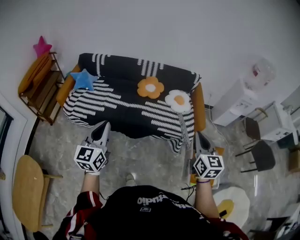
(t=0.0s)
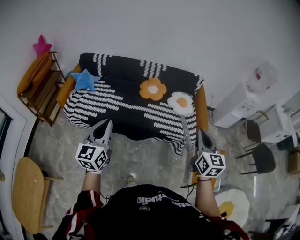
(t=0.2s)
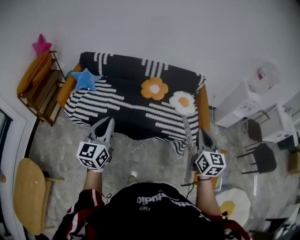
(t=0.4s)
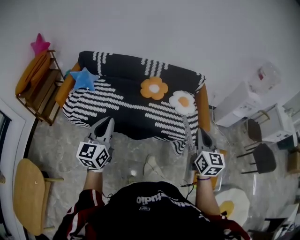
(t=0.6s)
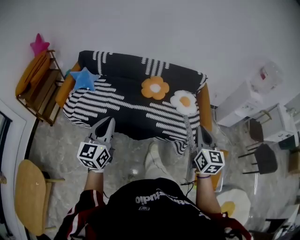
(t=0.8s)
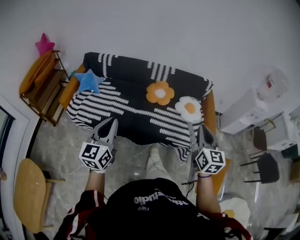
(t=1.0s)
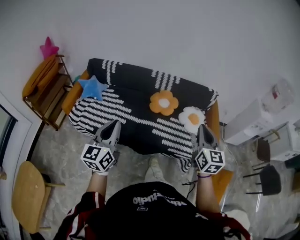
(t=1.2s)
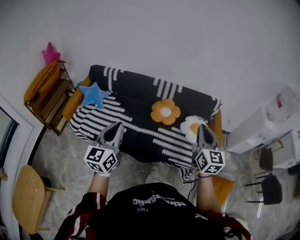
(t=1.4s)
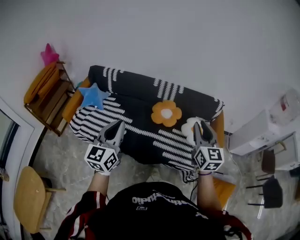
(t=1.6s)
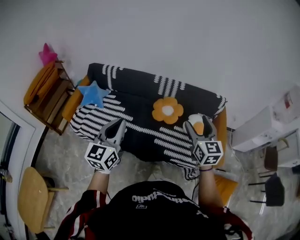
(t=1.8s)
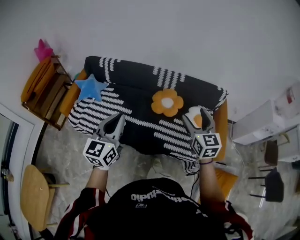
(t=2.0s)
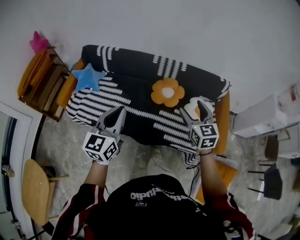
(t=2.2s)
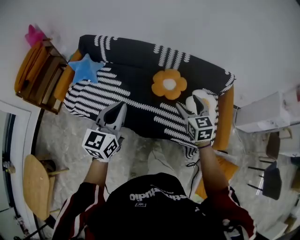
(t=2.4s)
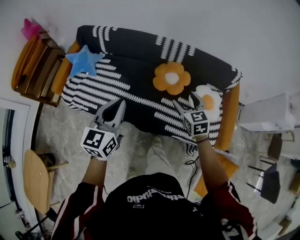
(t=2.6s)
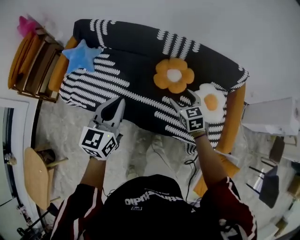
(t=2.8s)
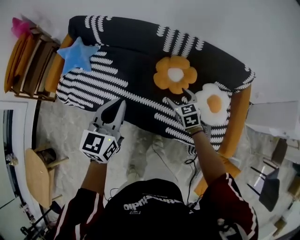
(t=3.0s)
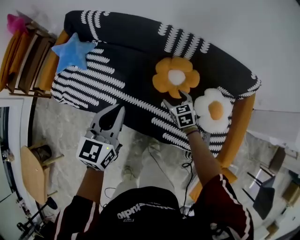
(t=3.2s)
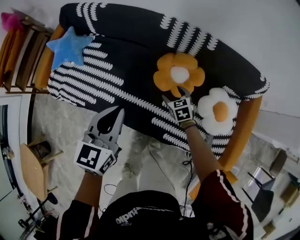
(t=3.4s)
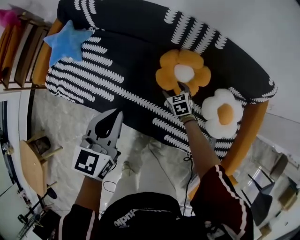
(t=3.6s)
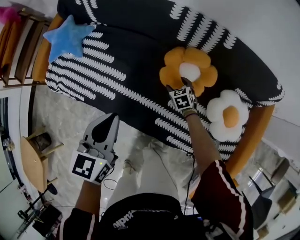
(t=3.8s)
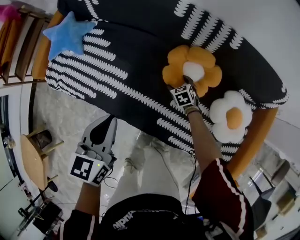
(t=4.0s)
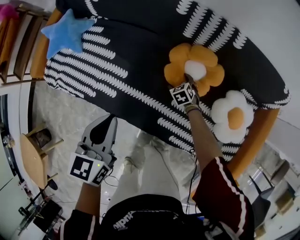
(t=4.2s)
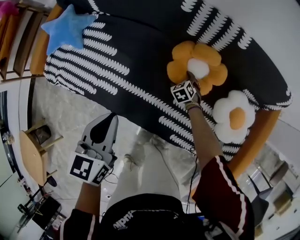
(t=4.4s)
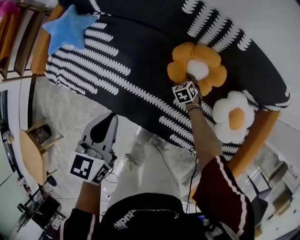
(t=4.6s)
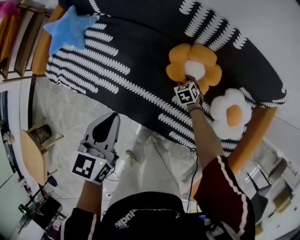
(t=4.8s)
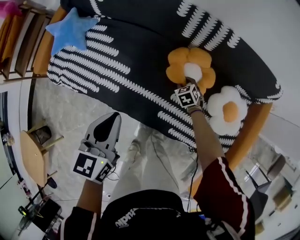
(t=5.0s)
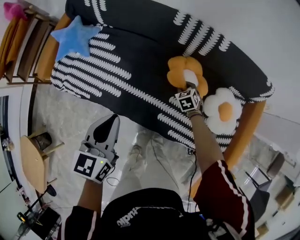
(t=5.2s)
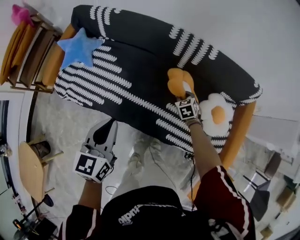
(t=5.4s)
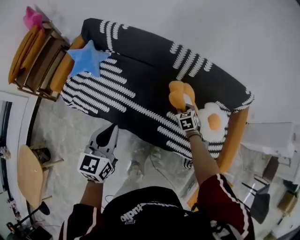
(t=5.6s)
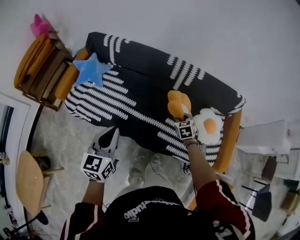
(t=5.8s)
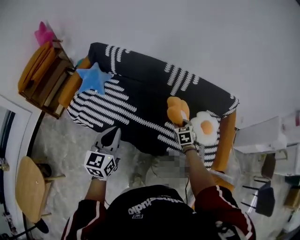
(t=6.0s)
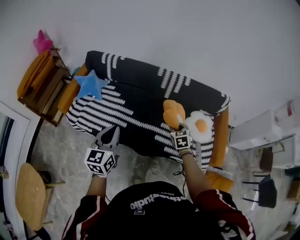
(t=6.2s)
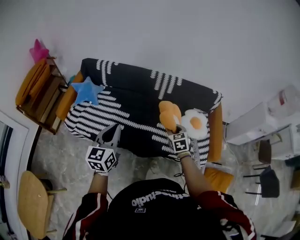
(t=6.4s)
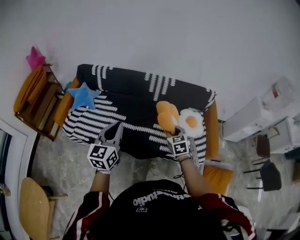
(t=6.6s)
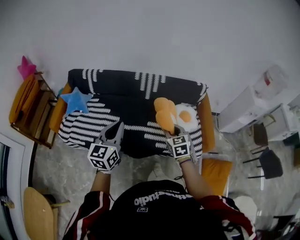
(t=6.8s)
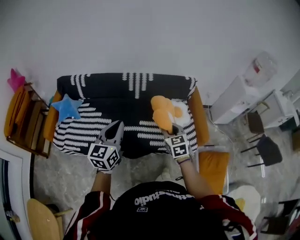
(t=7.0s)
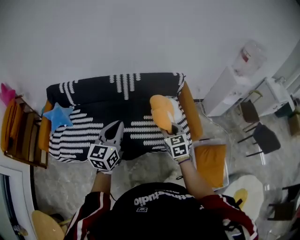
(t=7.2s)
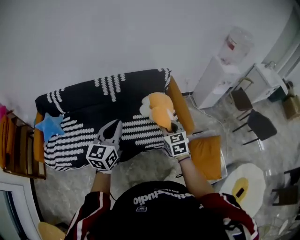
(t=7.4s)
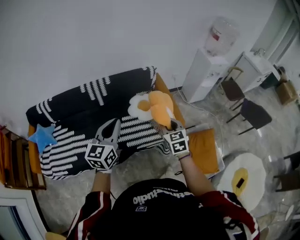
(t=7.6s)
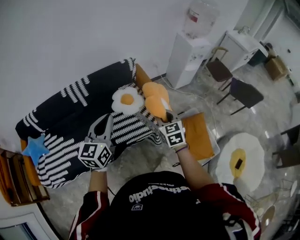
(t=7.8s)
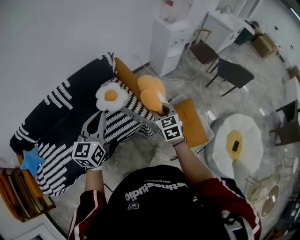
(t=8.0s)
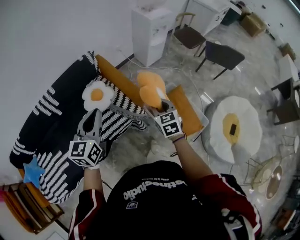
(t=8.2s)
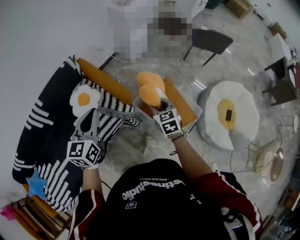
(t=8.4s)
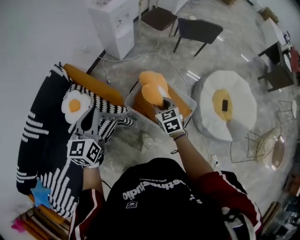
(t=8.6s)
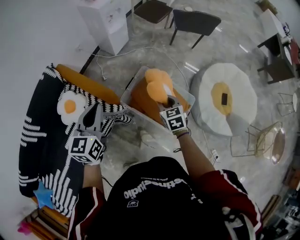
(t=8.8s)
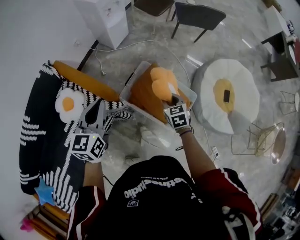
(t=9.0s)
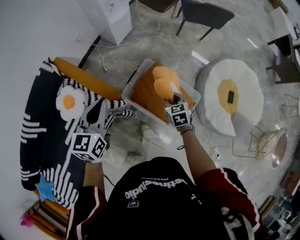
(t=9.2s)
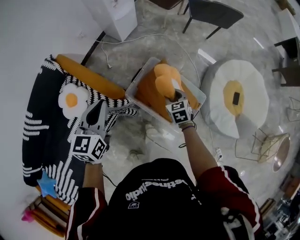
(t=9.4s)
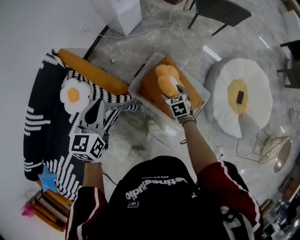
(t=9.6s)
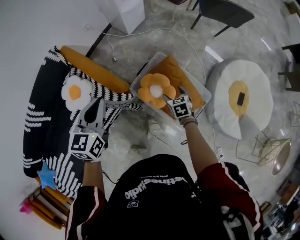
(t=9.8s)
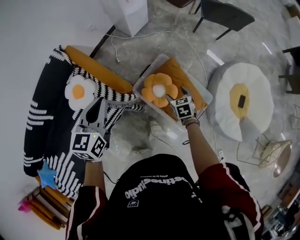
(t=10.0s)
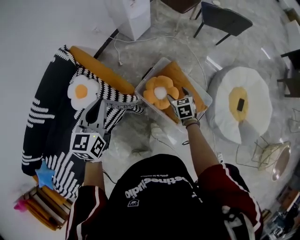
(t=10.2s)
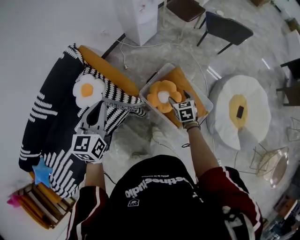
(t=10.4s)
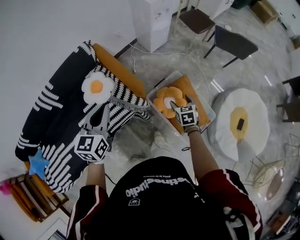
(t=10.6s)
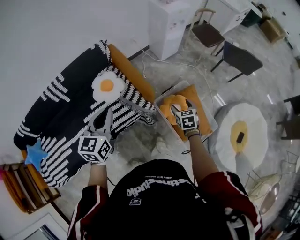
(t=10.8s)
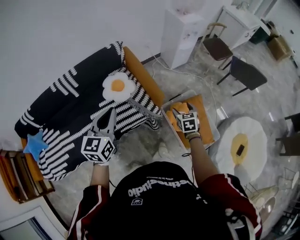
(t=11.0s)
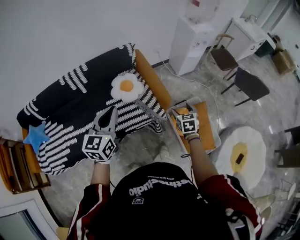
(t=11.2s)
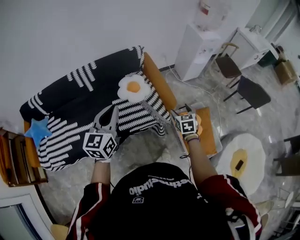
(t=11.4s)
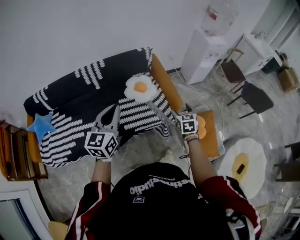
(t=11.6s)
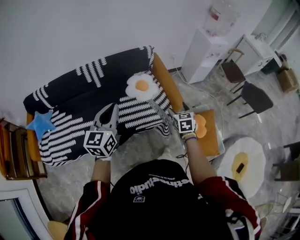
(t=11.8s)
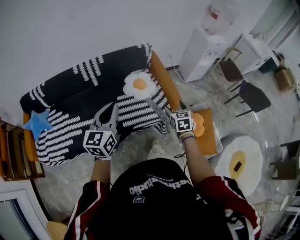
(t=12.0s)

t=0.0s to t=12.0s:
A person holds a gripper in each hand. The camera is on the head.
t=0.0s to t=1.6s: The grippers both shift forward by some 30 cm.
t=1.6s to t=3.0s: The left gripper goes some 25 cm forward and downward; the right gripper shifts some 50 cm downward and forward, angles its fingers downward, by approximately 40 degrees, and opens its fingers.
t=3.0s to t=4.4s: The left gripper travels downward by approximately 15 cm. Meanwhile the right gripper shifts roughly 35 cm downward, and changes its angle by some 30 degrees.
t=4.4s to t=6.0s: The right gripper moves upward and backward, about 40 cm, turns by roughly 20 degrees, and closes up. Meanwhile the left gripper is displaced upward, backward and to the left by some 30 cm.
t=6.0s to t=7.6s: The left gripper changes place by roughly 35 cm, and swivels roughly 40 degrees, while the right gripper changes place by roughly 40 cm, and swivels roughly 40 degrees.
t=7.6s to t=9.0s: The pair of grippers is taken some 50 cm. The right gripper changes its angle by about 50 degrees; the left gripper rotates approximately 40 degrees.
t=9.0s to t=10.4s: The right gripper is displaced to the left by about 5 cm, and opens up, while the left gripper travels to the left by approximately 10 cm.
t=10.4s to t=12.0s: The right gripper is displaced to the left by some 35 cm, and rotates roughly 30 degrees. Meanwhile the left gripper shifts some 35 cm to the left and backward, and swivels some 30 degrees.

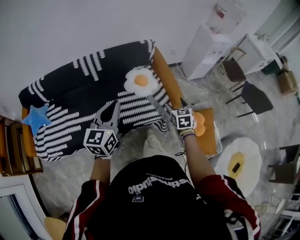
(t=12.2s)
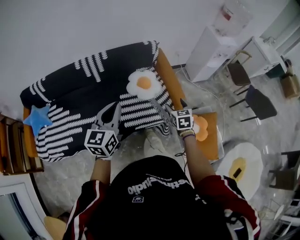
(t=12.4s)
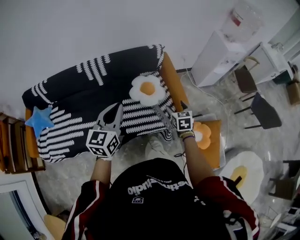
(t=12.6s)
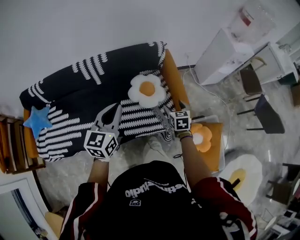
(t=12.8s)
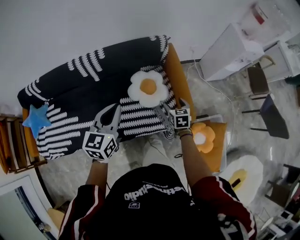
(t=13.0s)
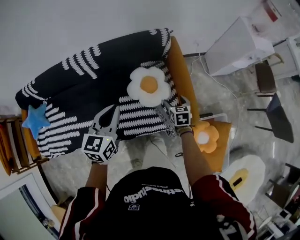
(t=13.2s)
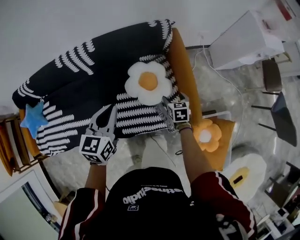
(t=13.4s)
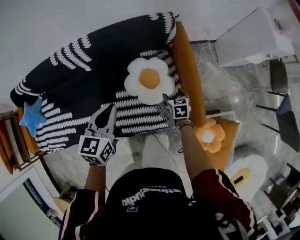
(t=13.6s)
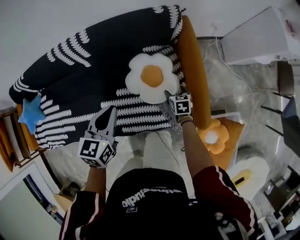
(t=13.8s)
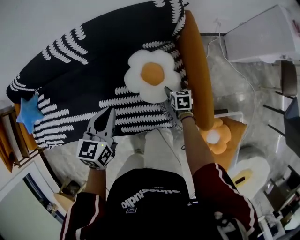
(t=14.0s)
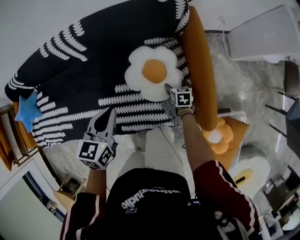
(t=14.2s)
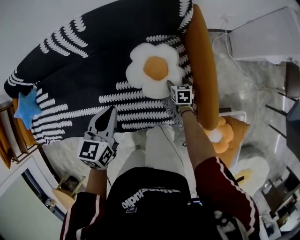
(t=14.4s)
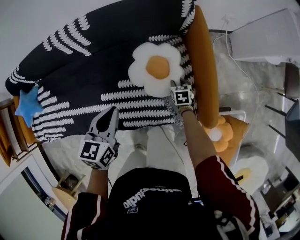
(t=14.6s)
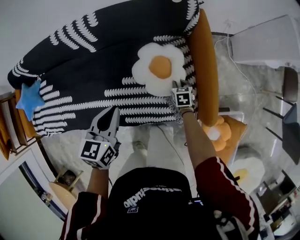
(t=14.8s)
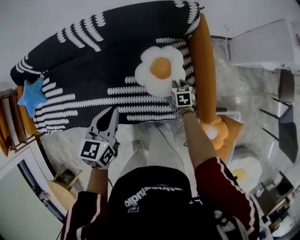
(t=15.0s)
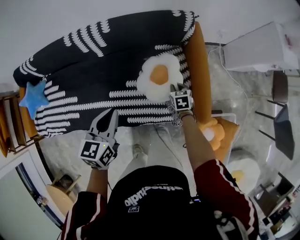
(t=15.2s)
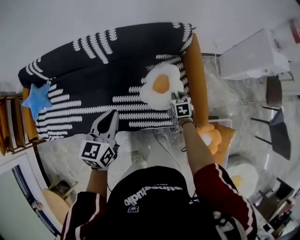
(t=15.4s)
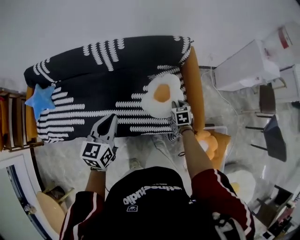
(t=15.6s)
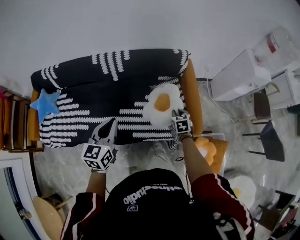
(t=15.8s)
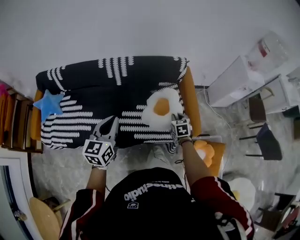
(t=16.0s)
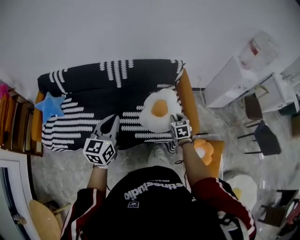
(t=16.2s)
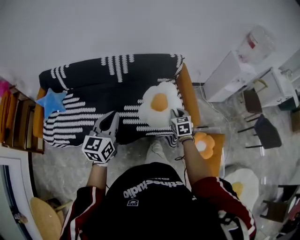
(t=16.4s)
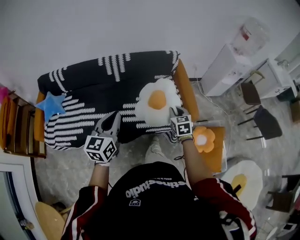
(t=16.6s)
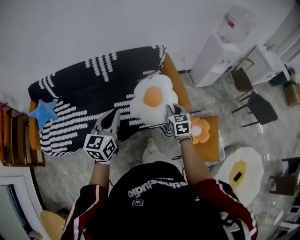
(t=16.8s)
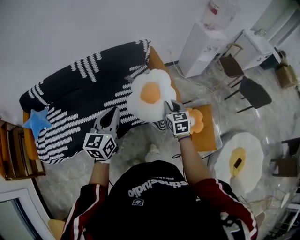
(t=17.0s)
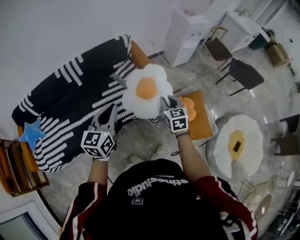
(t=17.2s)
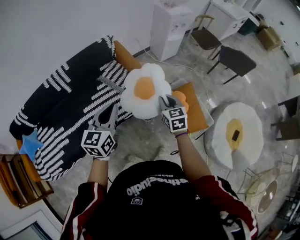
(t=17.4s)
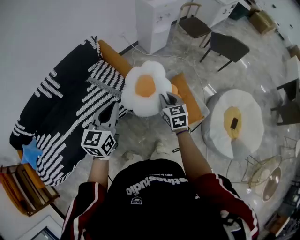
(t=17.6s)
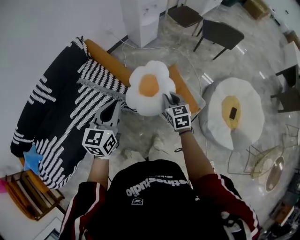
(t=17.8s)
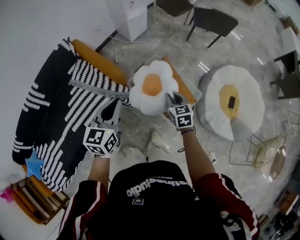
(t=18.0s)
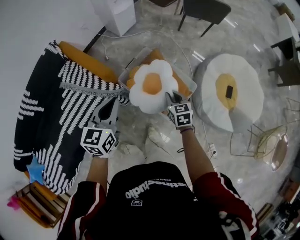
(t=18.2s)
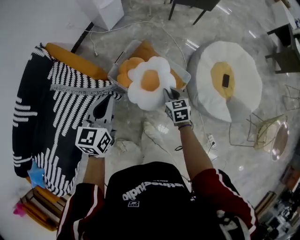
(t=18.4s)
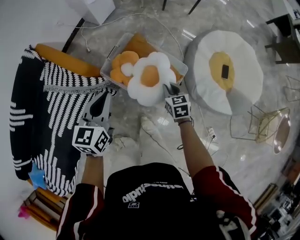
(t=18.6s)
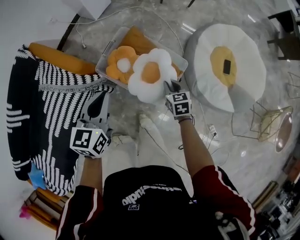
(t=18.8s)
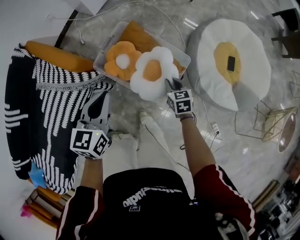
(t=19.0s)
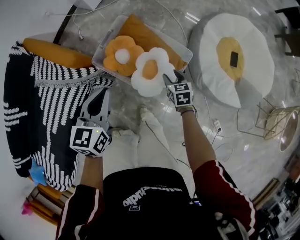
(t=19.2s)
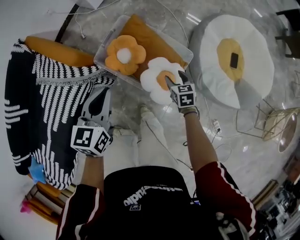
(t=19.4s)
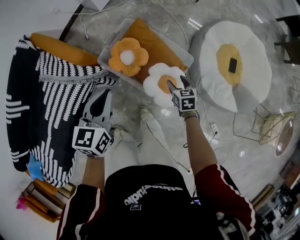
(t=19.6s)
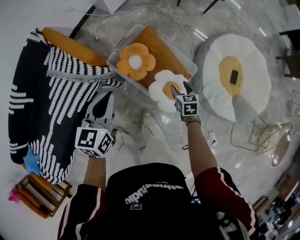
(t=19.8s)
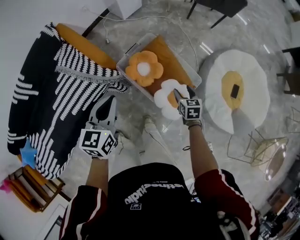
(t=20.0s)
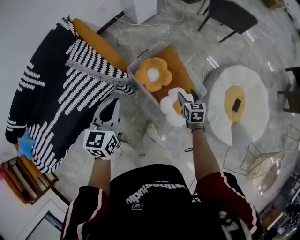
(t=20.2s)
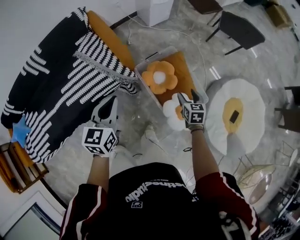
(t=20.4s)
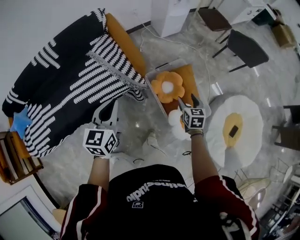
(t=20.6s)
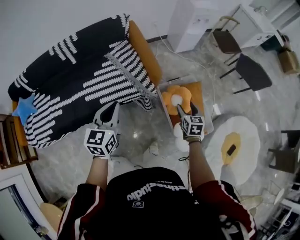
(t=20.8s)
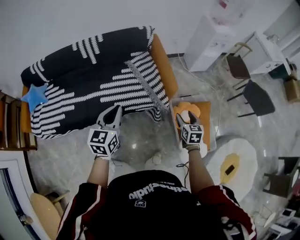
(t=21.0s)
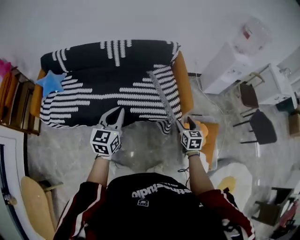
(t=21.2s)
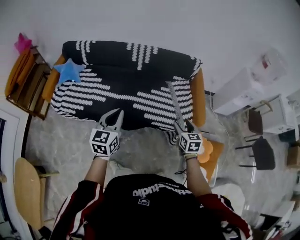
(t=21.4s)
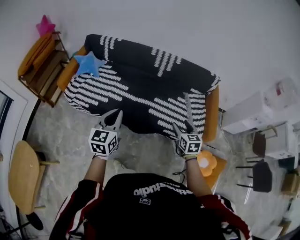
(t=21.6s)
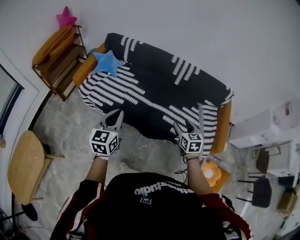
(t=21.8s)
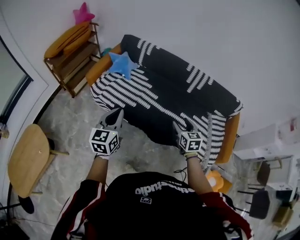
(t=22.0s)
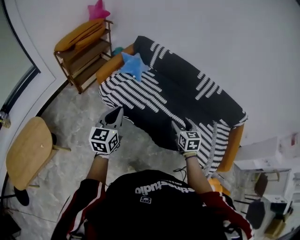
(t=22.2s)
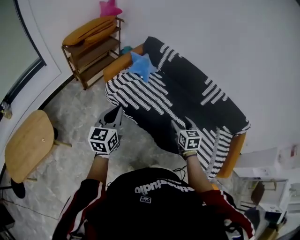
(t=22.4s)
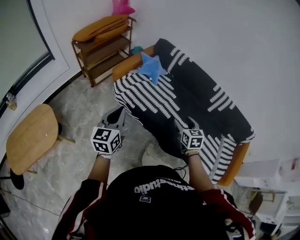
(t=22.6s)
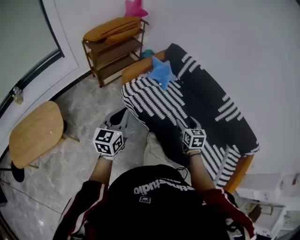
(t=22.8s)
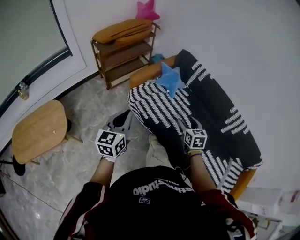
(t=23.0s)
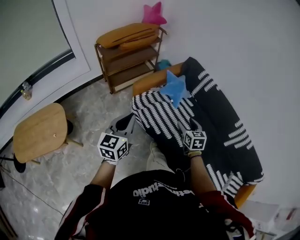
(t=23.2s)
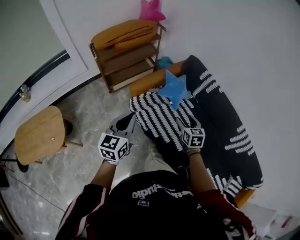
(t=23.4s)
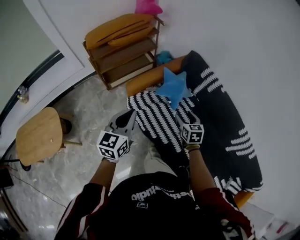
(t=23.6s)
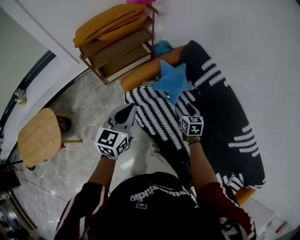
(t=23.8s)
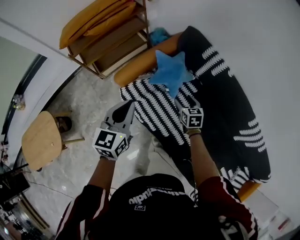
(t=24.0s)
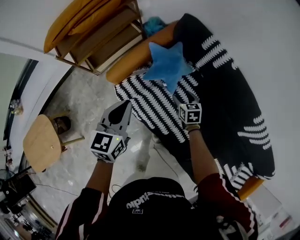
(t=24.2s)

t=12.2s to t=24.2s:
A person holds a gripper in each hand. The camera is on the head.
t=12.2s to t=13.8s: The right gripper goes approximately 50 cm downward and forward, and turns by approximately 30 degrees; the left gripper heads forward and downward, covering about 40 cm, and changes its angle by approximately 30 degrees.
t=13.8s to t=15.2s: The right gripper heads upward and to the left, covering roughly 10 cm, and closes its fingers, while the left gripper moves backward, to the left and upward, some 10 cm.
t=15.2s to t=16.6s: The right gripper heads upward and backward, covering roughly 40 cm, and swivels roughly 20 degrees, while the left gripper travels backward, upward and to the left by approximately 35 cm, and swivels approximately 20 degrees.
t=16.6s to t=18.2s: Both grippers are carried about 50 cm. The left gripper turns by some 50 degrees. Meanwhile the right gripper swivels roughly 40 degrees.
t=18.2s to t=19.8s: The right gripper shifts approximately 20 cm downward and to the right, and opens. Meanwhile the left gripper moves downward and to the right, about 10 cm.
t=19.8s to t=21.2s: The pair of grippers is taken roughly 50 cm. The left gripper changes its angle by some 50 degrees. Meanwhile the right gripper changes its angle by some 50 degrees.
t=21.2s to t=22.6s: The two grippers travel together, roughly 60 cm. The left gripper changes its angle by some 50 degrees, while the right gripper swivels approximately 50 degrees.
t=22.6s to t=24.2s: The two grippers travel together, forward, some 50 cm. The right gripper goes approximately 30 cm downward, and turns by some 20 degrees.
